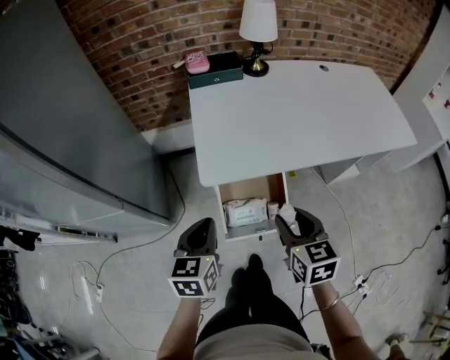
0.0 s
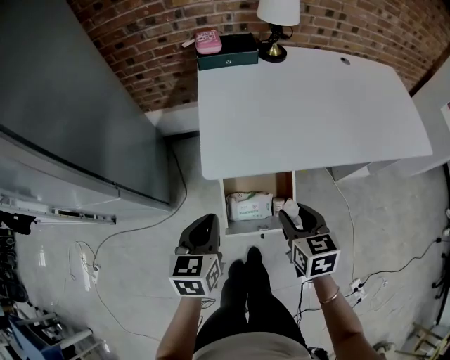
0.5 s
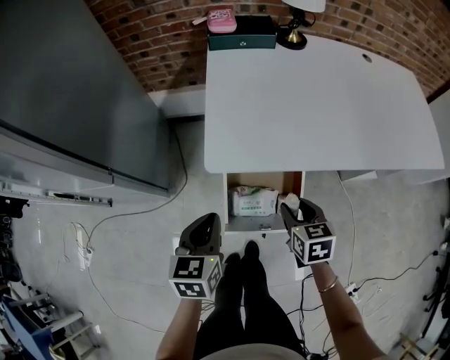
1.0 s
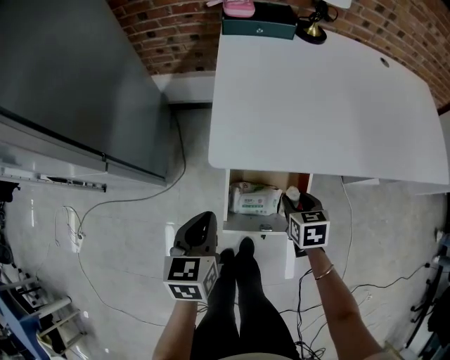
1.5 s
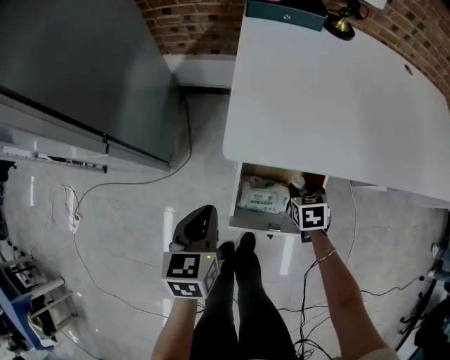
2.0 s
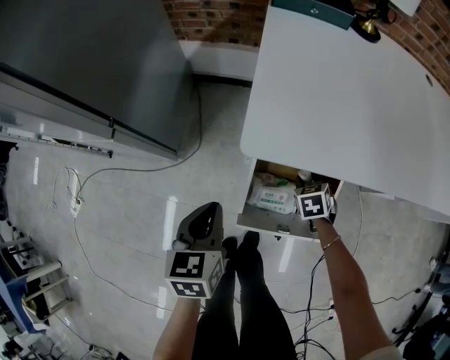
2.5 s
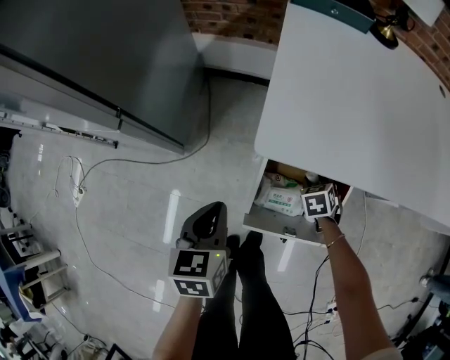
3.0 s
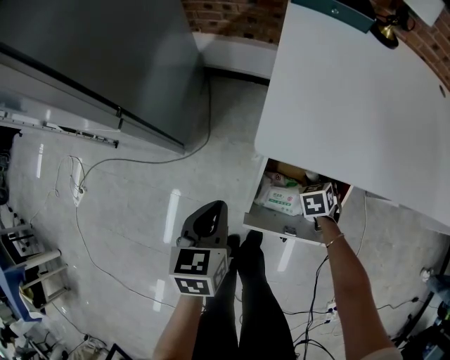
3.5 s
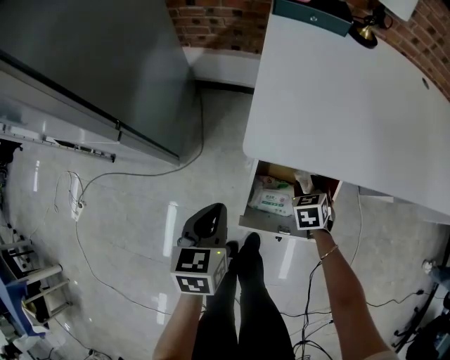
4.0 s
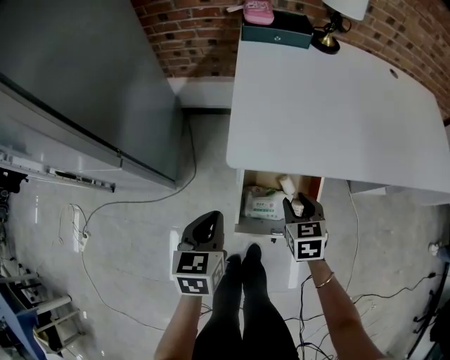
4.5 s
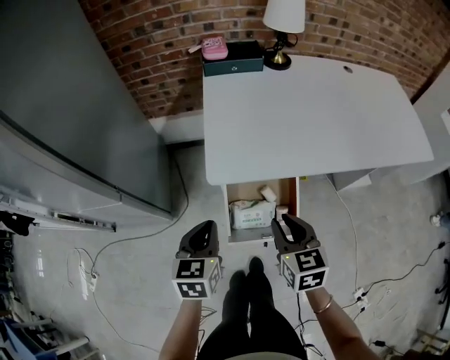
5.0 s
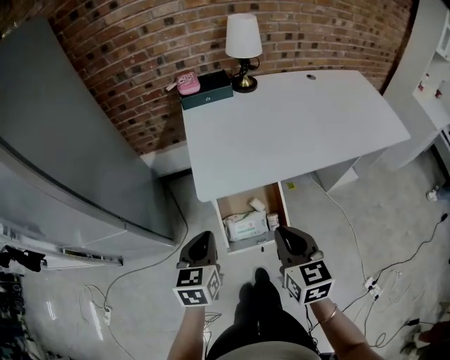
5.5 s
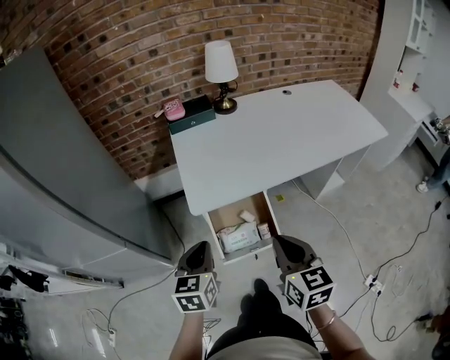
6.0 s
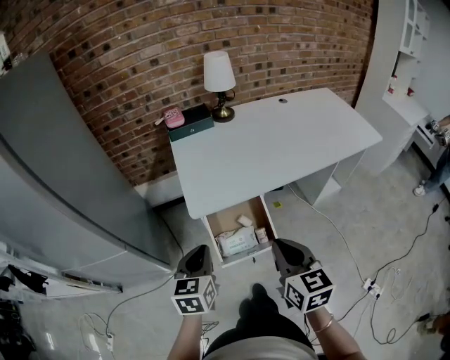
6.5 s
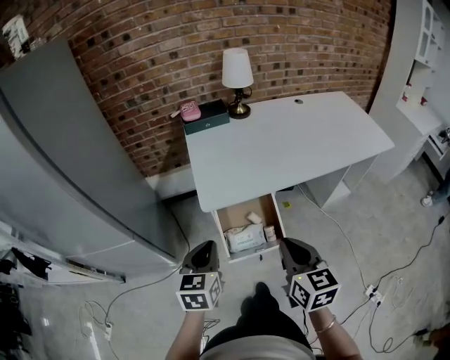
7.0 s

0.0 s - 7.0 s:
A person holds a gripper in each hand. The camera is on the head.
0.0 s - 2.0 s: The left gripper travels downward by about 20 cm, while the right gripper travels downward and forward by approximately 40 cm, and changes its angle by some 30 degrees.
2.0 s - 3.5 s: The right gripper goes approximately 10 cm downward. The left gripper goes about 5 cm downward.
3.5 s - 5.0 s: The left gripper shifts about 15 cm upward and to the right. The right gripper is displaced upward and backward by approximately 40 cm, and angles its fingers upward, by roughly 30 degrees.
5.0 s - 7.0 s: Both grippers travel together upward and backward, roughly 20 cm. The right gripper closes its fingers.

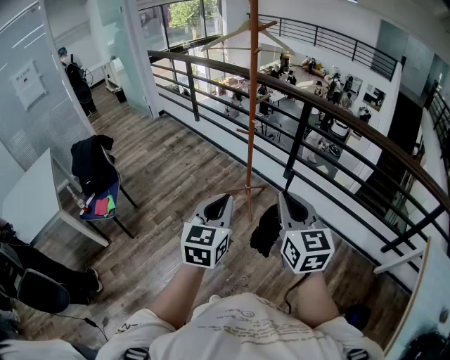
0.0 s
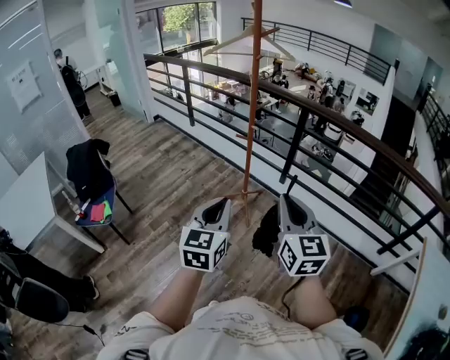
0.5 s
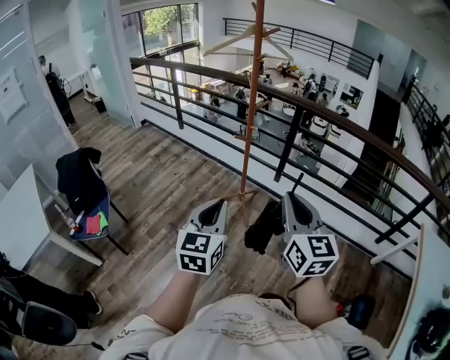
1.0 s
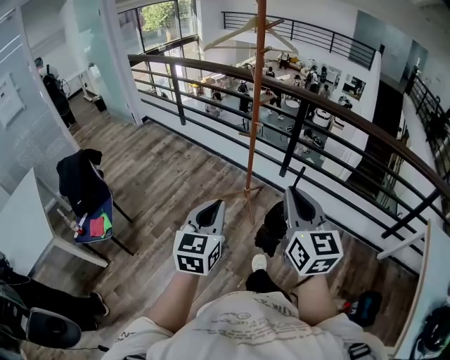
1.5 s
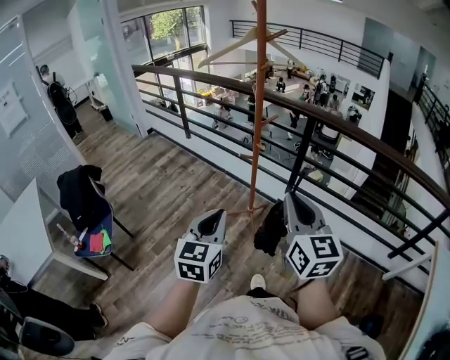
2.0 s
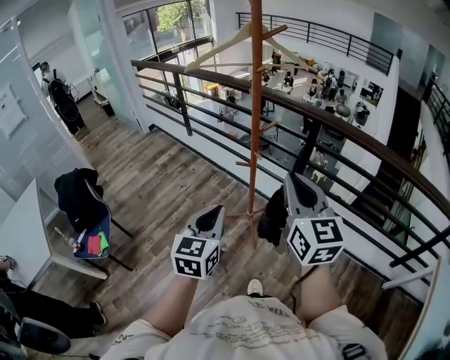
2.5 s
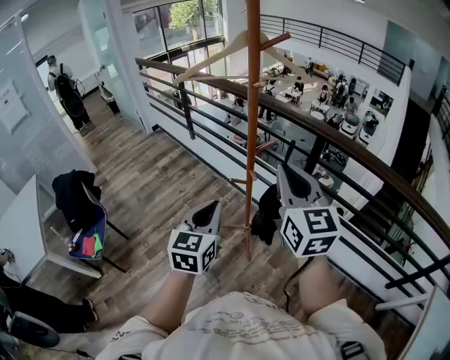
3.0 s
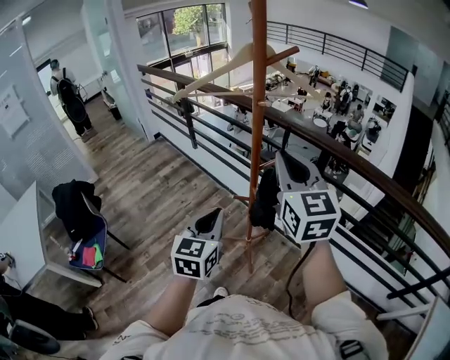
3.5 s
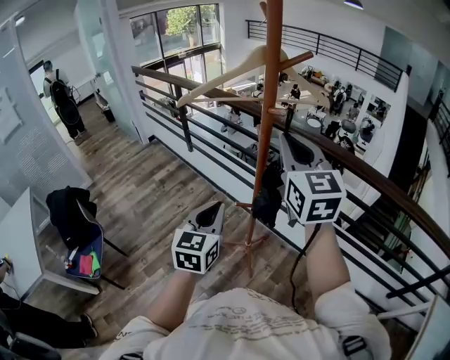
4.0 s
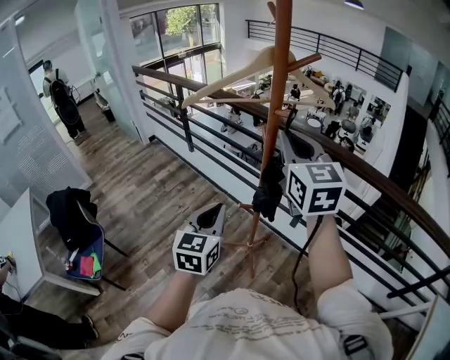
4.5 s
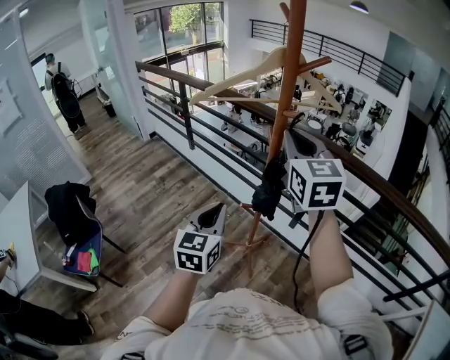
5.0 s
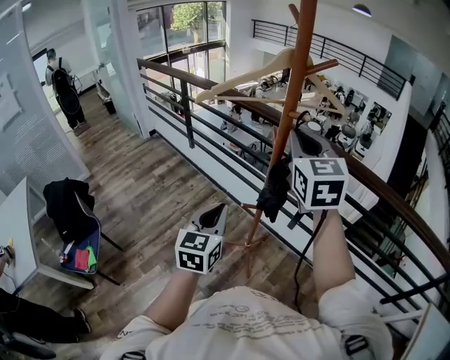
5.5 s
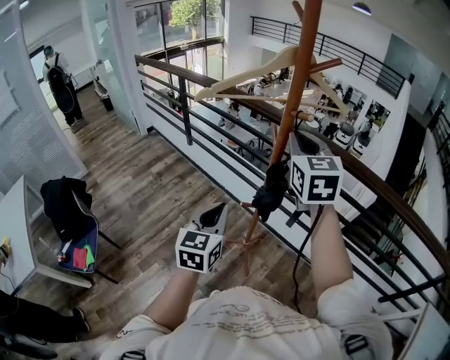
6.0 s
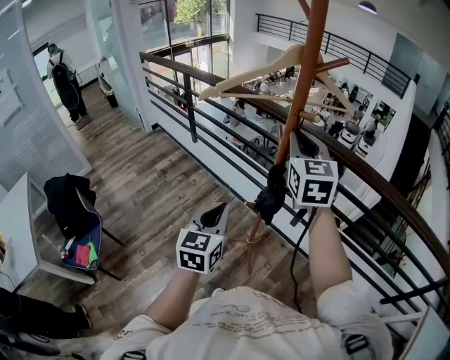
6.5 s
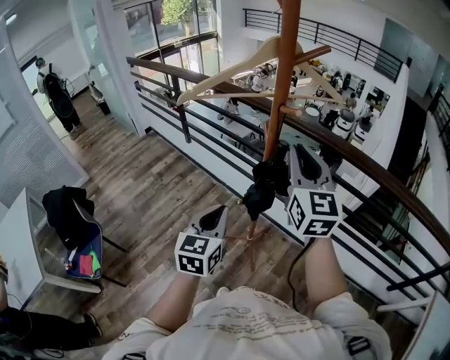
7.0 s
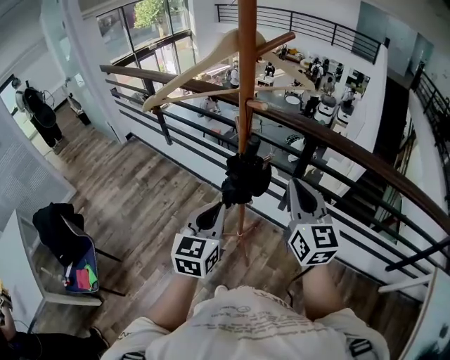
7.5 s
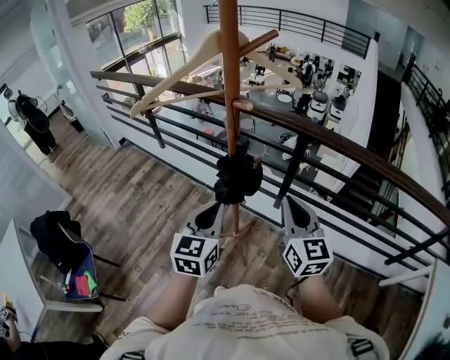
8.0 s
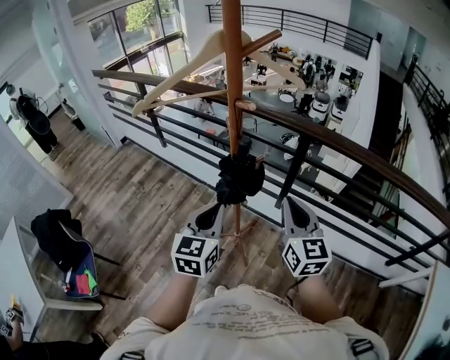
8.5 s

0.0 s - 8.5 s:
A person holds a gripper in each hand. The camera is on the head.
0.0 s - 2.0 s: Both grippers travel together forward and to the left, roughly 15 cm.
2.0 s - 4.0 s: Both grippers travel together forward, some 35 cm.
4.0 s - 6.5 s: The right gripper is displaced forward by roughly 10 cm.
6.5 s - 8.5 s: The left gripper shifts approximately 10 cm to the right. The right gripper heads downward, to the right and backward, covering some 20 cm.

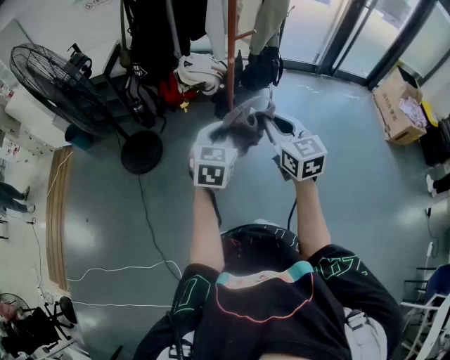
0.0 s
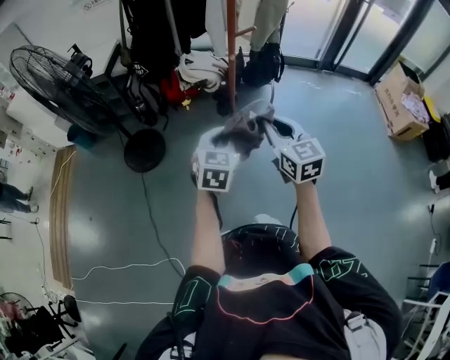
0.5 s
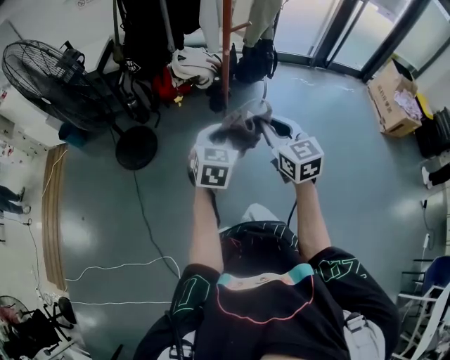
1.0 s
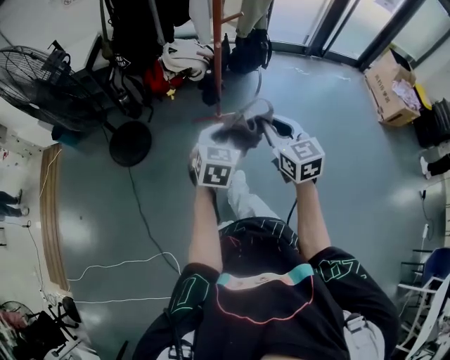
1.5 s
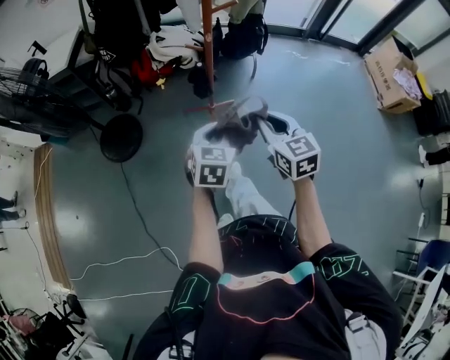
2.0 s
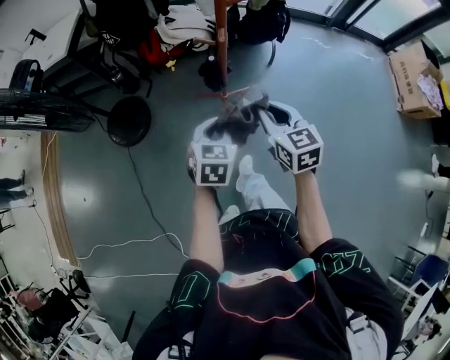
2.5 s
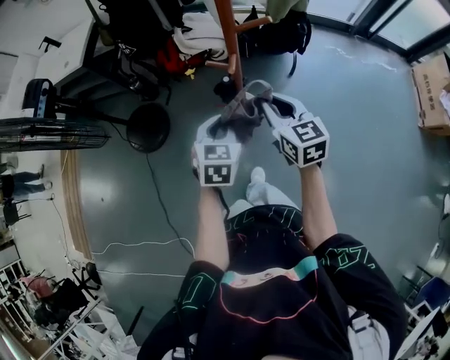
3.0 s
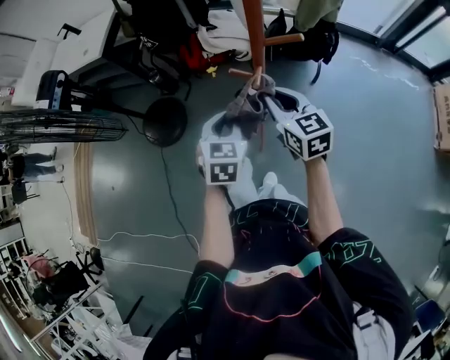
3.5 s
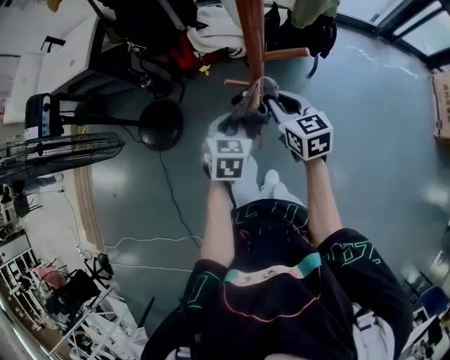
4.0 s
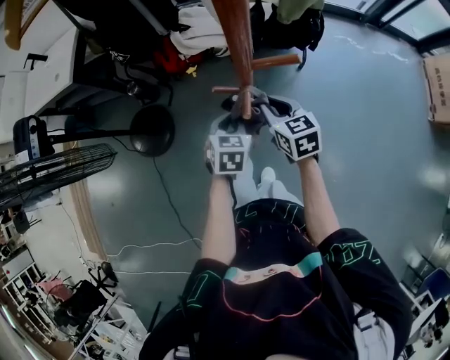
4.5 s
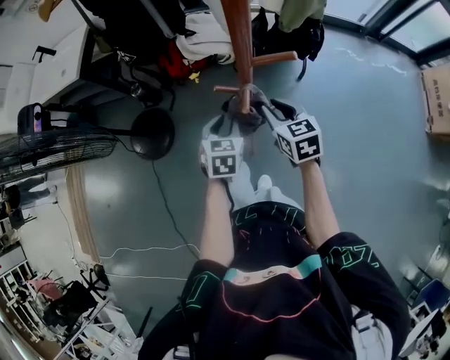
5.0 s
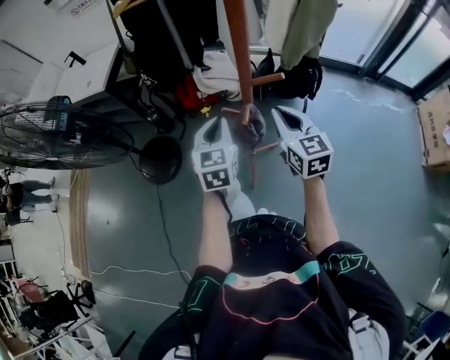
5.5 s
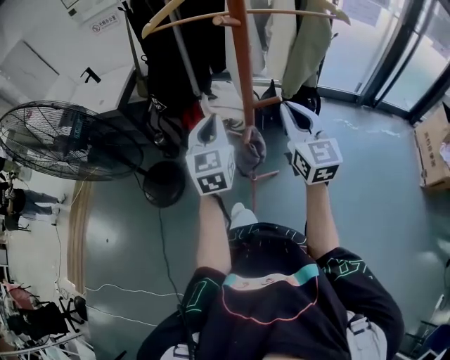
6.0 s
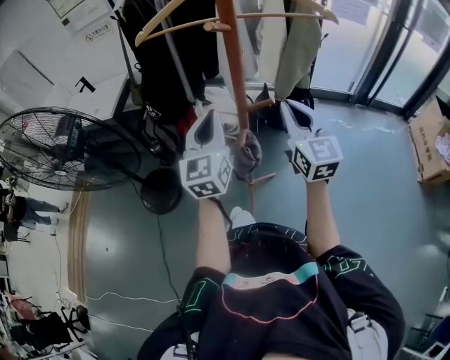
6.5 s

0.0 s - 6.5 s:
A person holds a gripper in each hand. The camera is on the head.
0.0 s - 2.0 s: The two grippers go roughly 10 cm downward.
2.0 s - 4.5 s: The grippers both shift forward by about 30 cm.
4.5 s - 6.5 s: The two grippers go about 30 cm upward. The left gripper tilts its fingers roughly 50 degrees upward, while the right gripper tilts its fingers roughly 40 degrees upward.

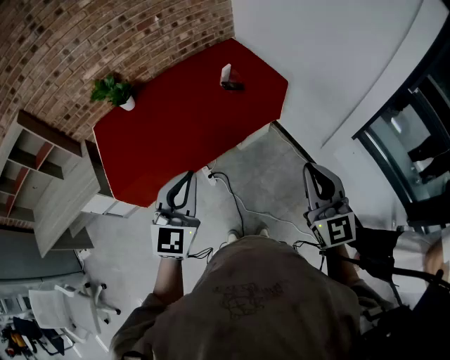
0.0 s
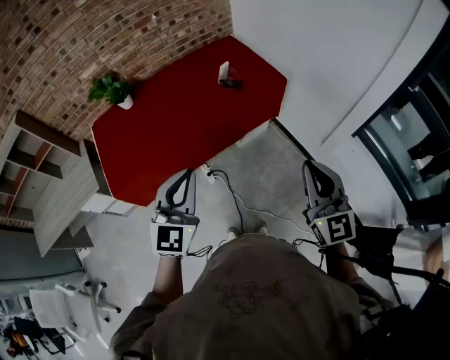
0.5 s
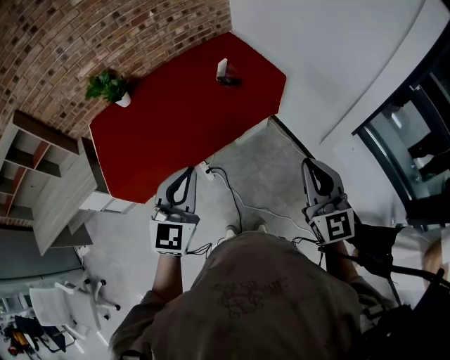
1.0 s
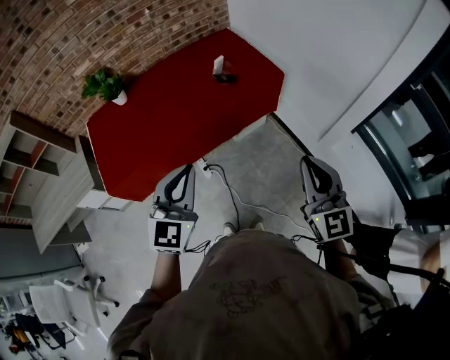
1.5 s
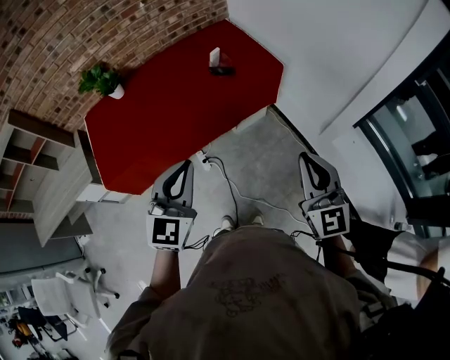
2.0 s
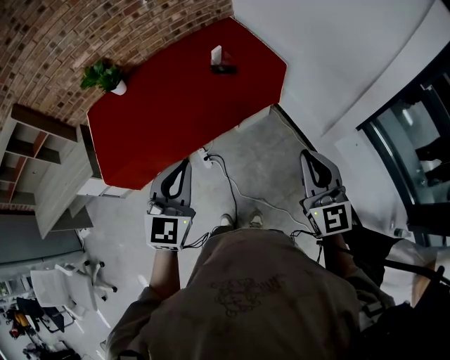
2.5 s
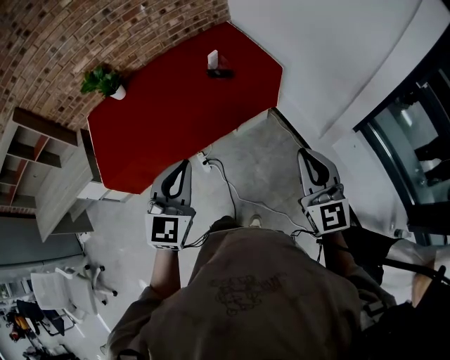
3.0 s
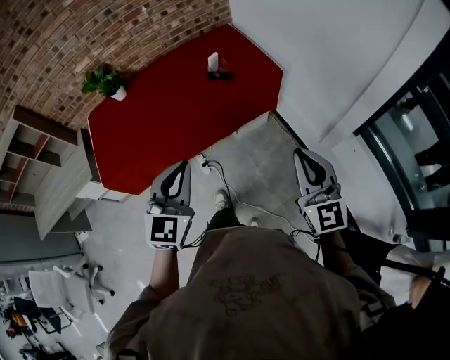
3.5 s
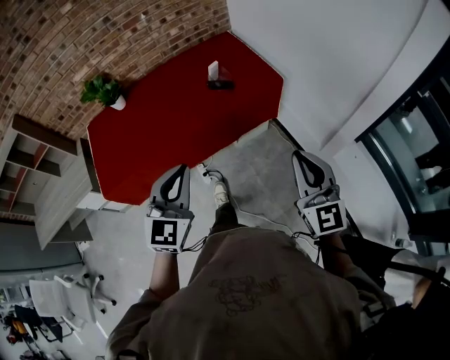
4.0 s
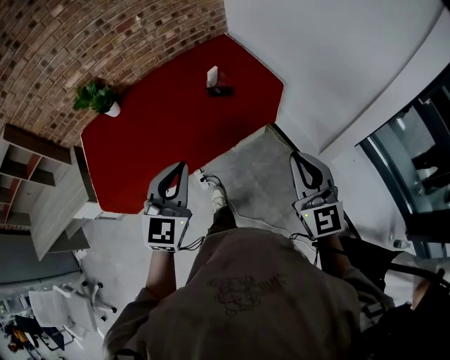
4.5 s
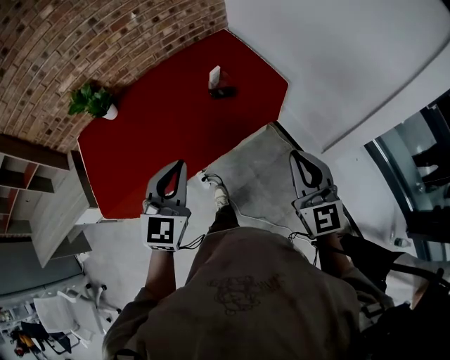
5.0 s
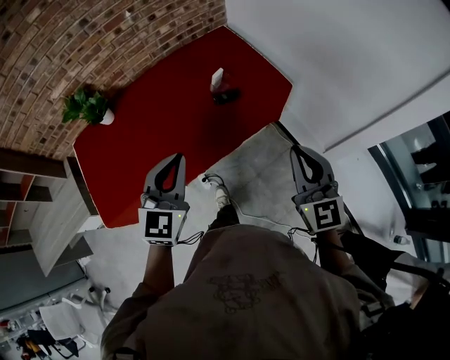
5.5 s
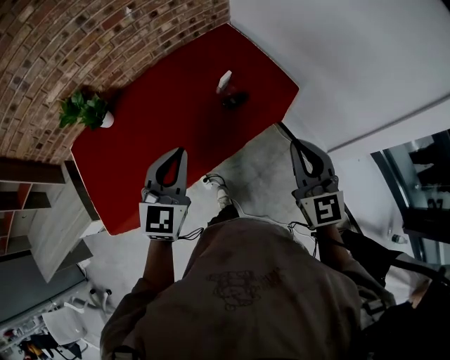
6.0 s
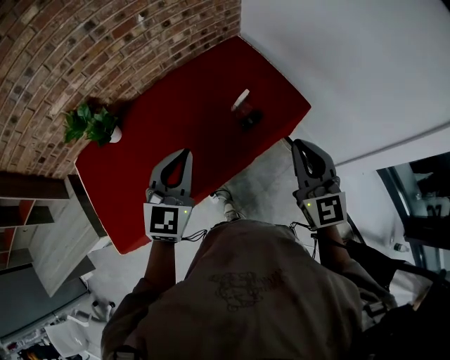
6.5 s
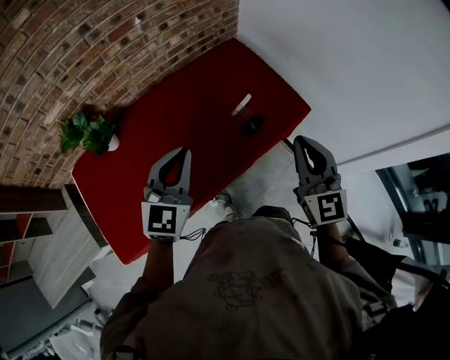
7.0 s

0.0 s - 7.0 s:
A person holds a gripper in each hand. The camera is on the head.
0.0 s - 2.0 s: Both grippers travel together to the right, about 5 cm.
2.0 s - 3.5 s: The grippers move only a little.
3.5 s - 5.0 s: The grippers both shift forward and to the left by some 15 cm.
5.0 s - 7.0 s: The grippers both shift forward and to the left by roughly 25 cm.
